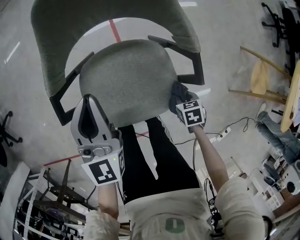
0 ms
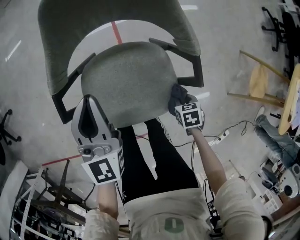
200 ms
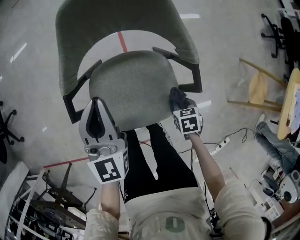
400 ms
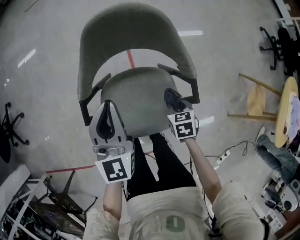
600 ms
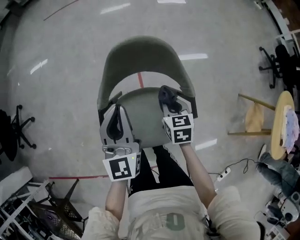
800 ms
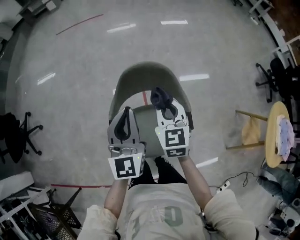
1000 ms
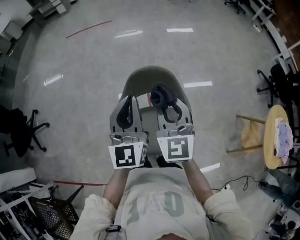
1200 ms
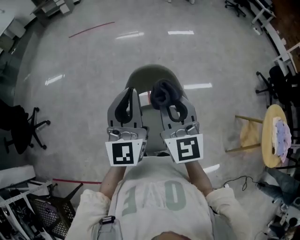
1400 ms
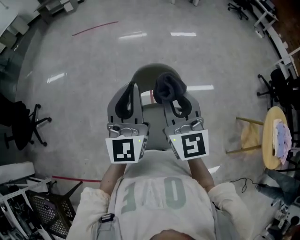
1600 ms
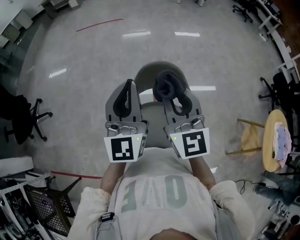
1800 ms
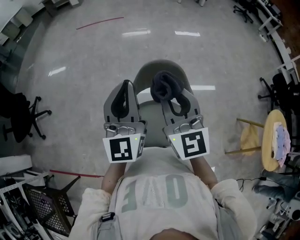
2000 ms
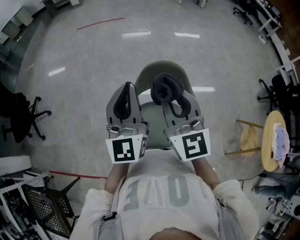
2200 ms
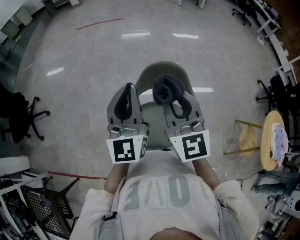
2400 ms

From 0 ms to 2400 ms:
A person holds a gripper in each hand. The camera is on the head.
From 0 ms to 1200 ms: The right gripper travels upward by approximately 60 cm, and points its fingers roughly 70 degrees further upward. The left gripper is displaced upward by roughly 35 cm.
From 1200 ms to 2400 ms: The grippers both shift to the left and upward by some 10 cm.

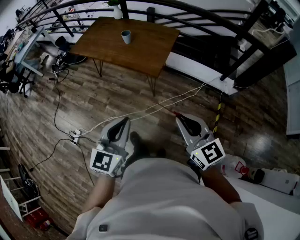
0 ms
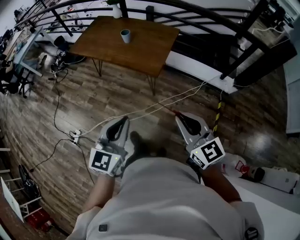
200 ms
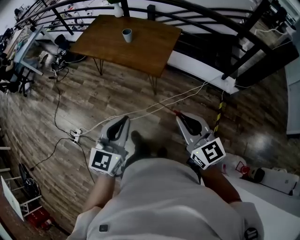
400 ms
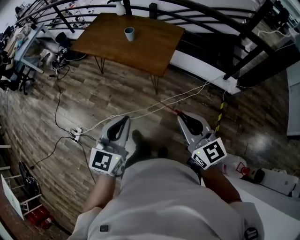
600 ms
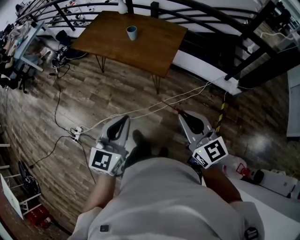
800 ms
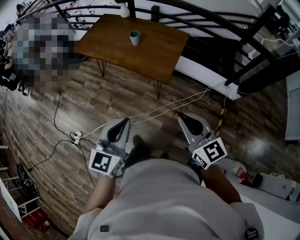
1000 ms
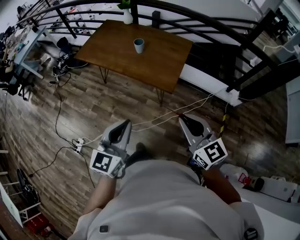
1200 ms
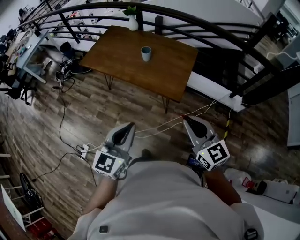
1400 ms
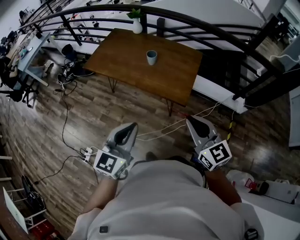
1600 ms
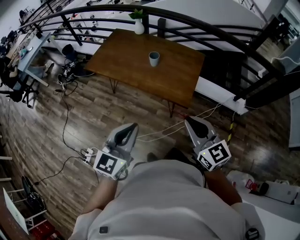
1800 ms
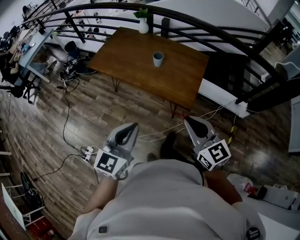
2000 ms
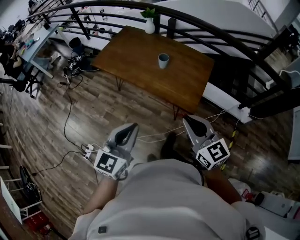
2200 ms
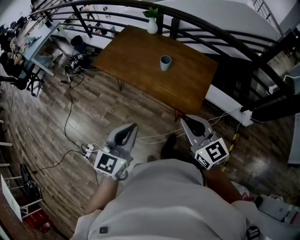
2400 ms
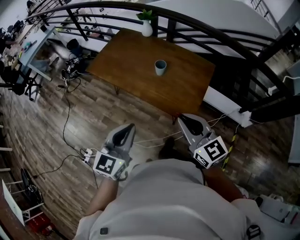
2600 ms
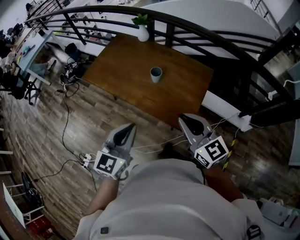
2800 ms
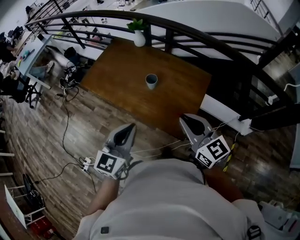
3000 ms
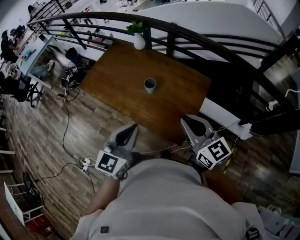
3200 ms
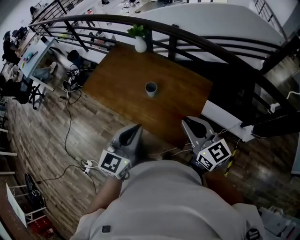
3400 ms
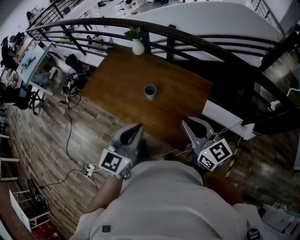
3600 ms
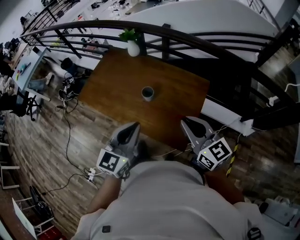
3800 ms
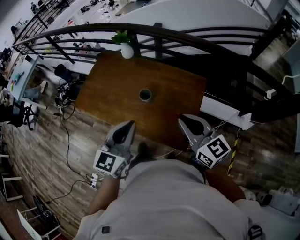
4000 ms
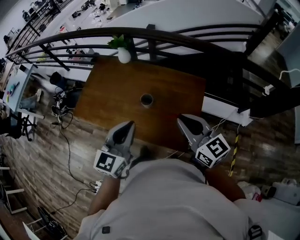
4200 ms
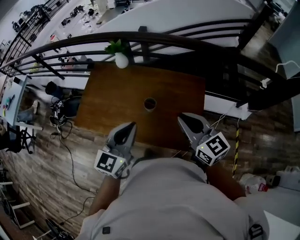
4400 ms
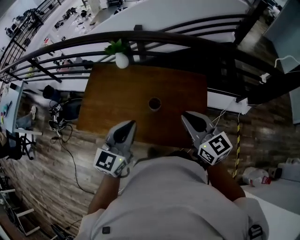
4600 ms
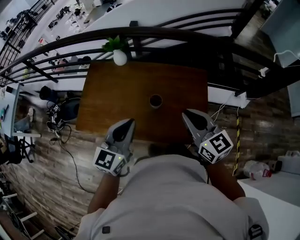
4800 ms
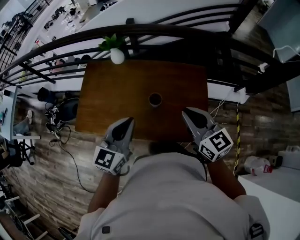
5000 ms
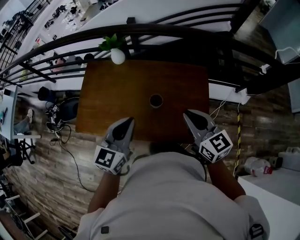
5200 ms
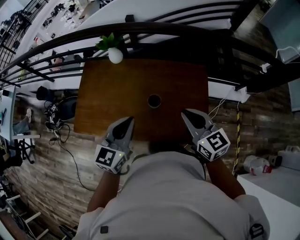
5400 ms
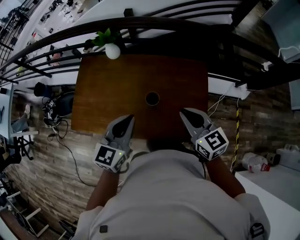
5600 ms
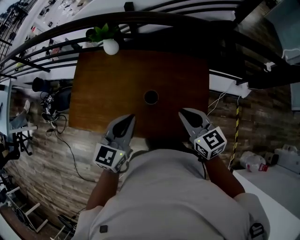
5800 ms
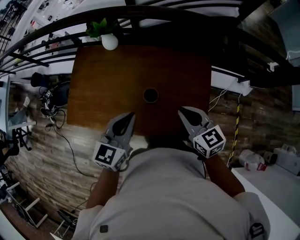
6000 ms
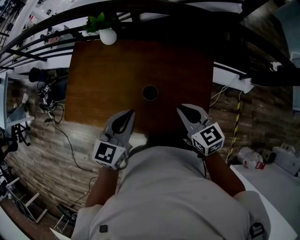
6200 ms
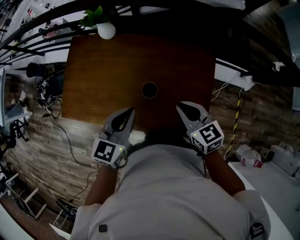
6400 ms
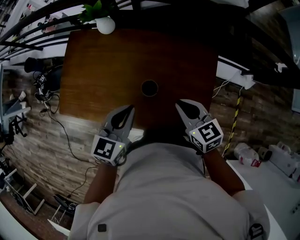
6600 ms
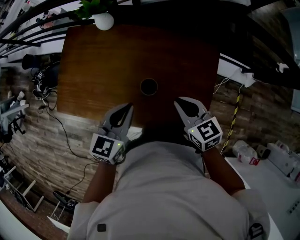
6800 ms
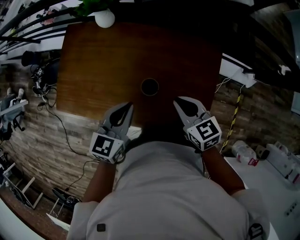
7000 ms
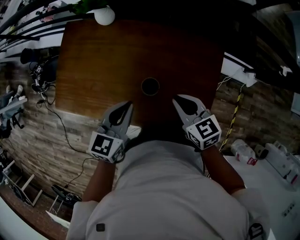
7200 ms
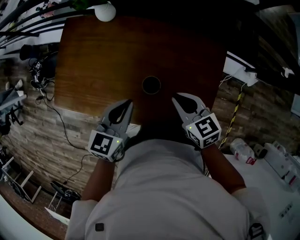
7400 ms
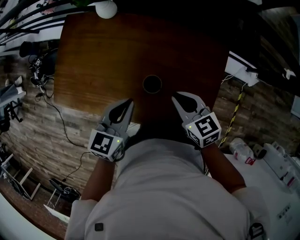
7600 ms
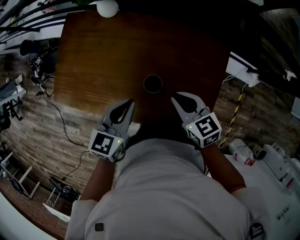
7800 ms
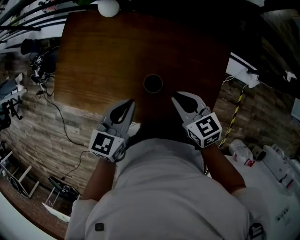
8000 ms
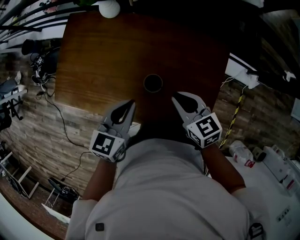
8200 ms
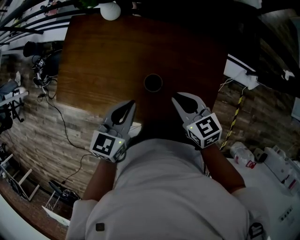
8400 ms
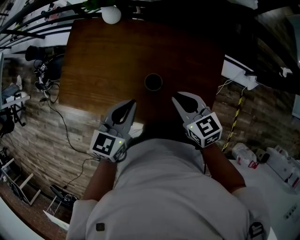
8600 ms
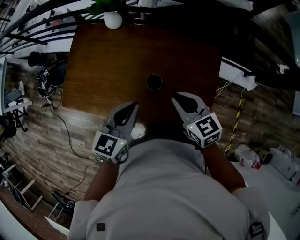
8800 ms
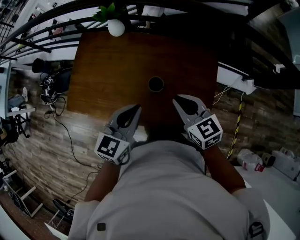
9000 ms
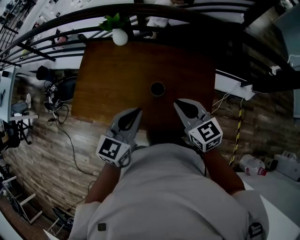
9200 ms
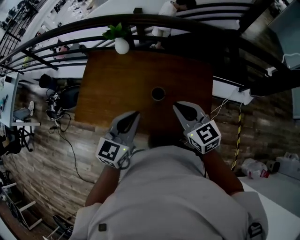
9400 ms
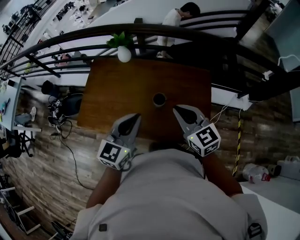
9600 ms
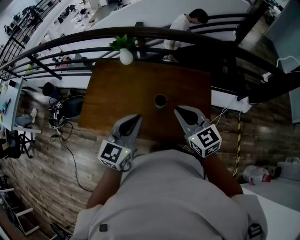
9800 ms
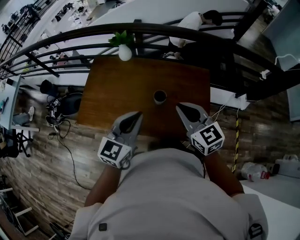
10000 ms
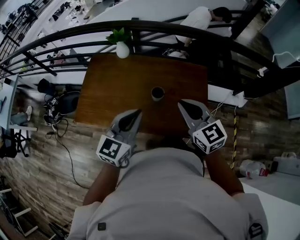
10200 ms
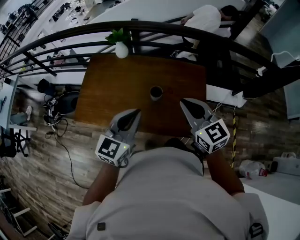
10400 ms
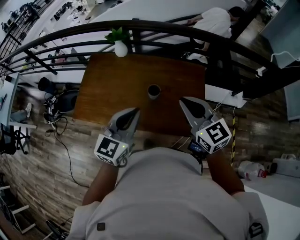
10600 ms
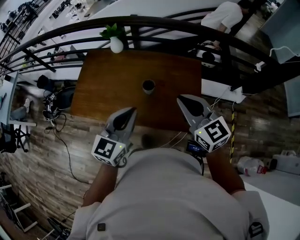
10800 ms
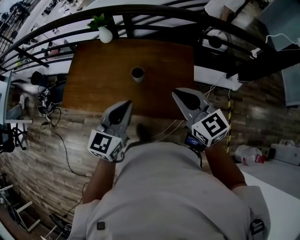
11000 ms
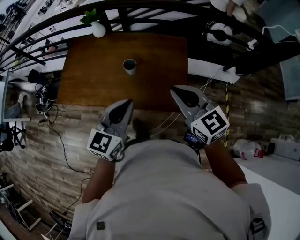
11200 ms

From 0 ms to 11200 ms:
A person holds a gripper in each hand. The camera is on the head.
From 0 ms to 1600 ms: Both grippers move forward and to the left, some 30 cm.
From 1600 ms to 3200 ms: The grippers both shift forward by roughly 30 cm.
From 3200 ms to 4800 ms: The grippers both shift forward and to the left by some 25 cm. The left gripper swivels roughly 20 degrees, while the right gripper rotates roughly 20 degrees.
From 4800 ms to 6400 ms: The right gripper moves downward and forward, some 20 cm, and turns by some 20 degrees. Meanwhile the left gripper moves forward, downward and to the right, about 20 cm.
From 6400 ms to 8000 ms: The right gripper is displaced downward and forward by roughly 10 cm. The left gripper heads downward, covering about 10 cm.
From 8000 ms to 9600 ms: Both grippers travel together upward and backward, approximately 25 cm. The right gripper swivels roughly 30 degrees. The left gripper changes its angle by approximately 20 degrees.
From 9600 ms to 11200 ms: Both grippers travel together backward and to the right, some 20 cm.

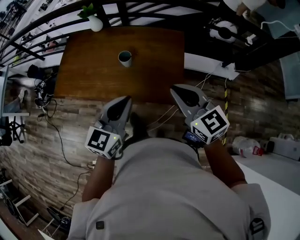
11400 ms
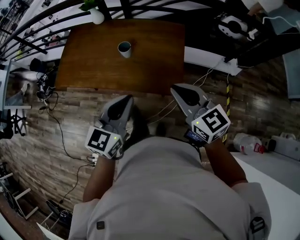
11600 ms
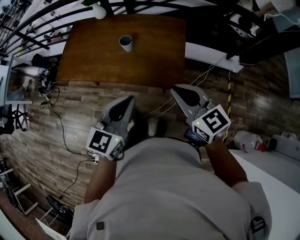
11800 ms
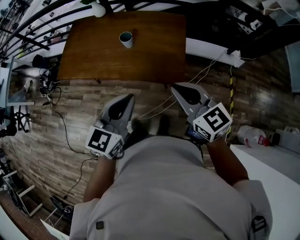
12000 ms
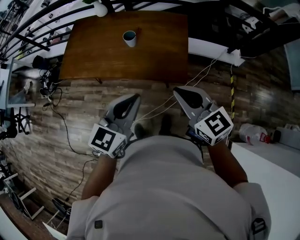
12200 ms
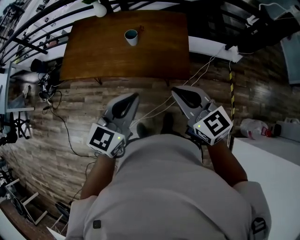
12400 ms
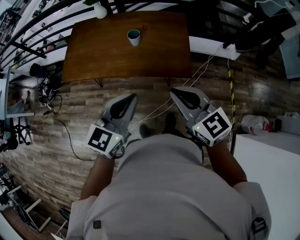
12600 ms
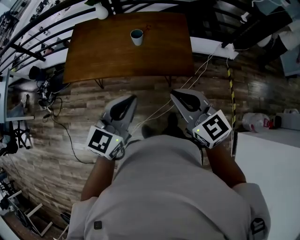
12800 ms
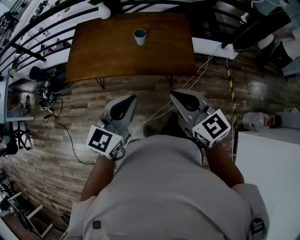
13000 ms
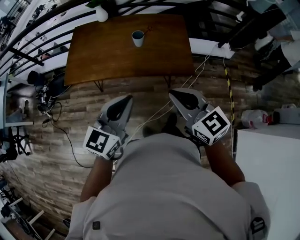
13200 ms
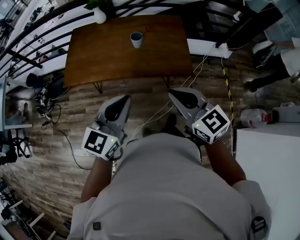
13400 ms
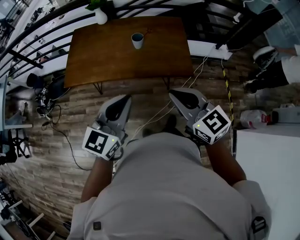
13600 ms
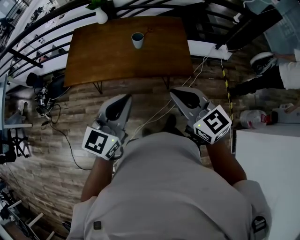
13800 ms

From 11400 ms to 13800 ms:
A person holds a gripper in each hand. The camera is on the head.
From 11400 ms to 12600 ms: The two grippers go about 20 cm backward and to the left.
From 12600 ms to 13800 ms: The left gripper shifts some 10 cm to the left. The right gripper travels to the left and backward by some 10 cm.

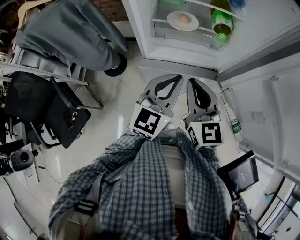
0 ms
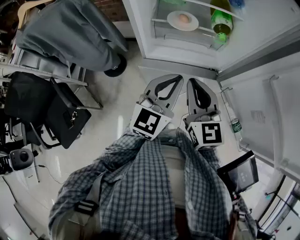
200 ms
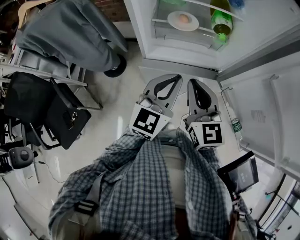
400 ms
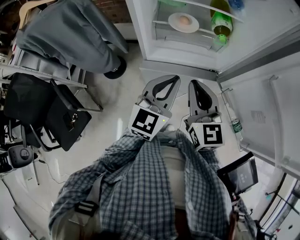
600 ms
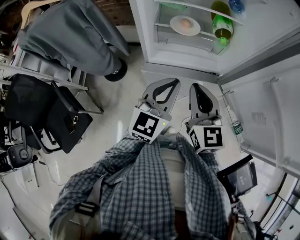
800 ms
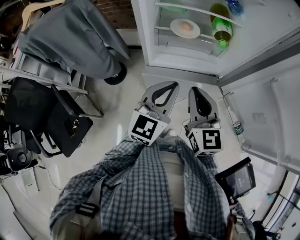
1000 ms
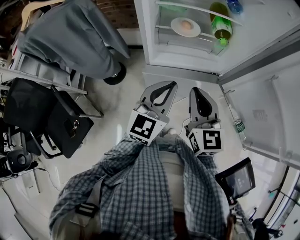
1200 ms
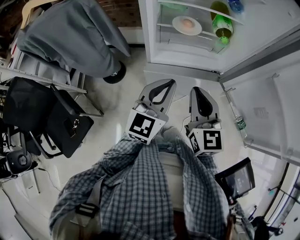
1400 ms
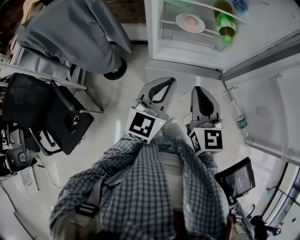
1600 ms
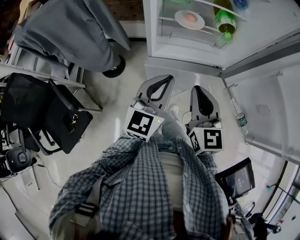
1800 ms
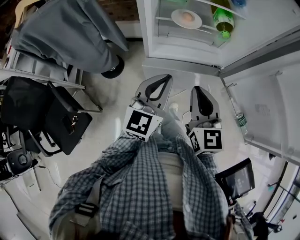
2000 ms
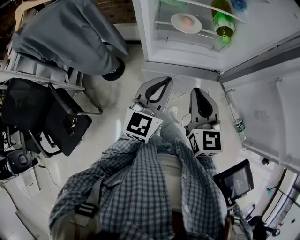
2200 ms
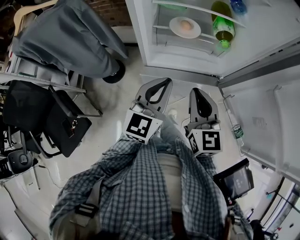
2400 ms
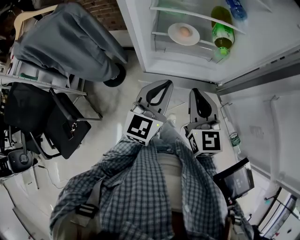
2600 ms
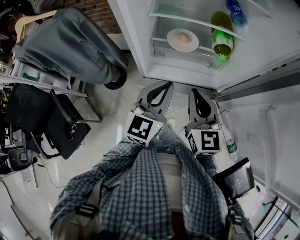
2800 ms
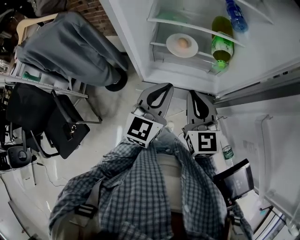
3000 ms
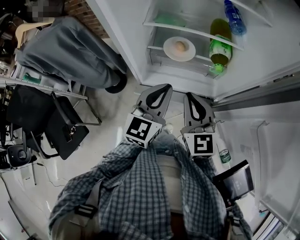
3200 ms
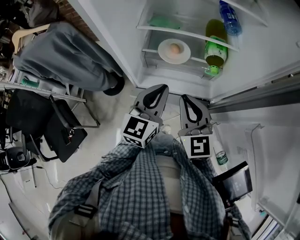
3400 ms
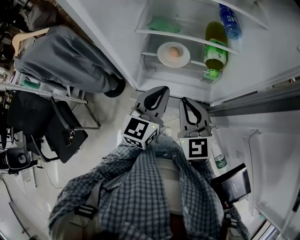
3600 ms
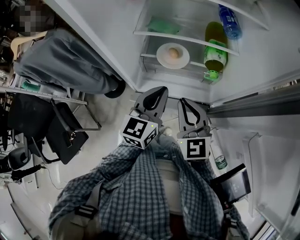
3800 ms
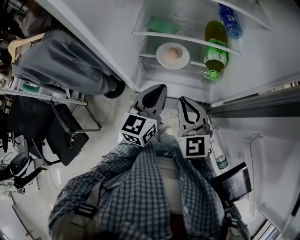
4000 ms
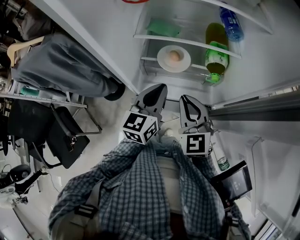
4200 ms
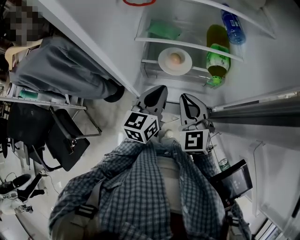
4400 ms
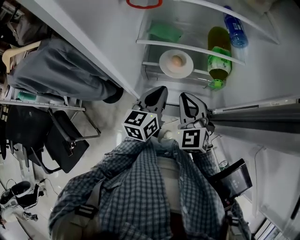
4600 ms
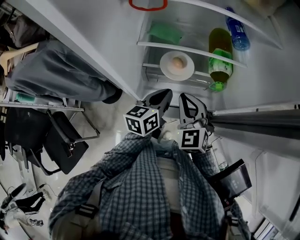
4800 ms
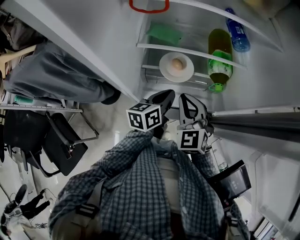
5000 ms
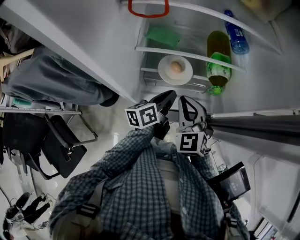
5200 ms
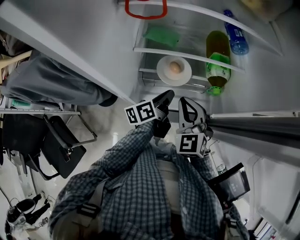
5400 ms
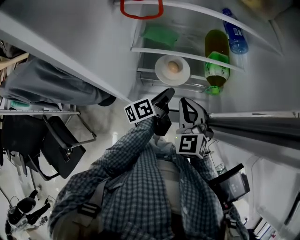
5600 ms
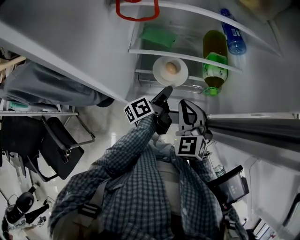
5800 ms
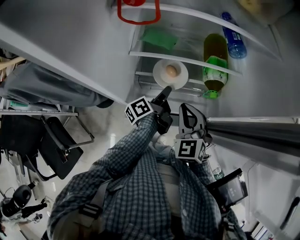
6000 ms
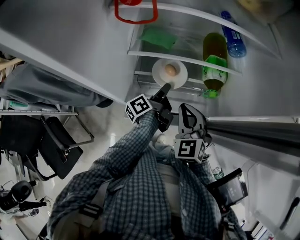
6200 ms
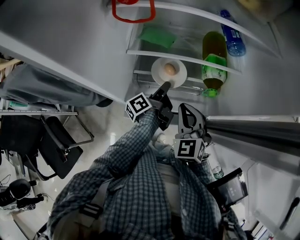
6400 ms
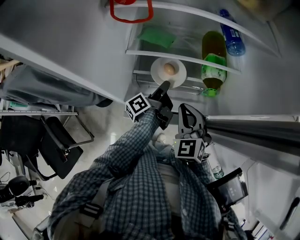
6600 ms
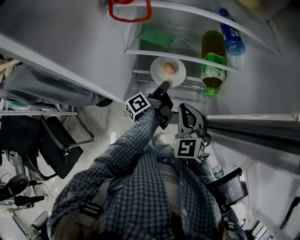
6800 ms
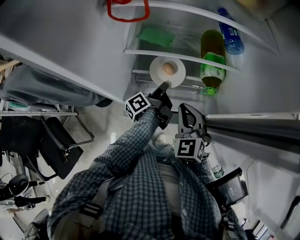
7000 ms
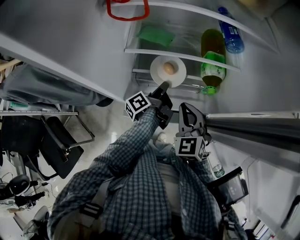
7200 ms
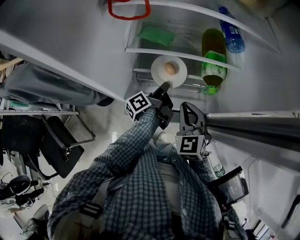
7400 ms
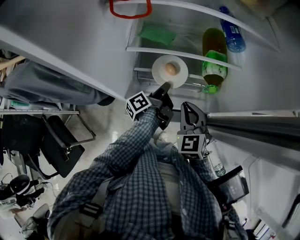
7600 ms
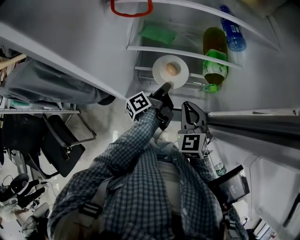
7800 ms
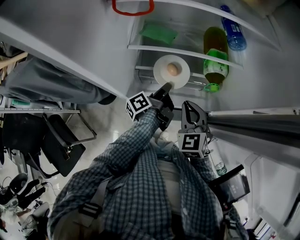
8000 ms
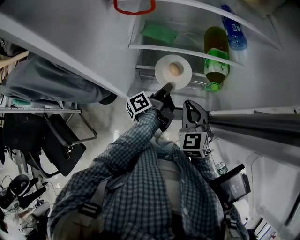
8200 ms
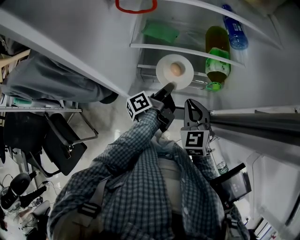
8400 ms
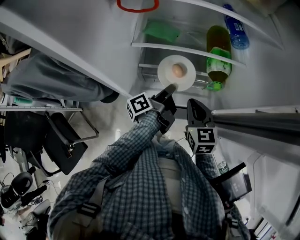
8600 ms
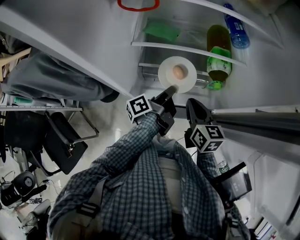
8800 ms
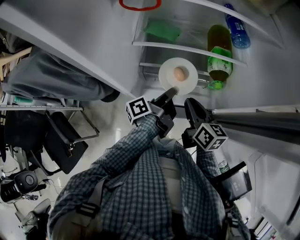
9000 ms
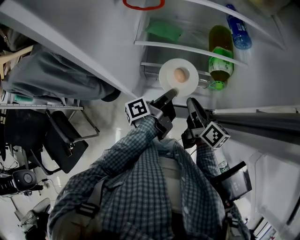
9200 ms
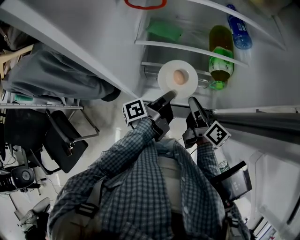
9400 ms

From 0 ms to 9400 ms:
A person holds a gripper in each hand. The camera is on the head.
From 0 ms to 1600 ms: The right gripper changes place by some 5 cm.
From 1600 ms to 3200 ms: The right gripper changes place by roughly 15 cm.
From 3200 ms to 4800 ms: The right gripper ends up some 10 cm from where it was, and swivels approximately 20 degrees.
From 7800 ms to 9400 ms: The right gripper twists approximately 80 degrees clockwise, seen from behind.
